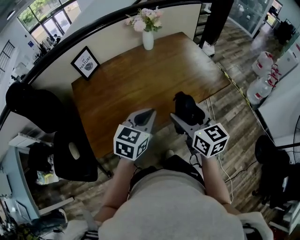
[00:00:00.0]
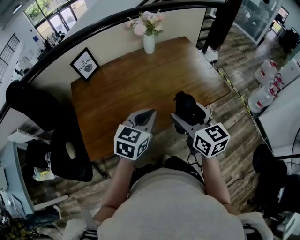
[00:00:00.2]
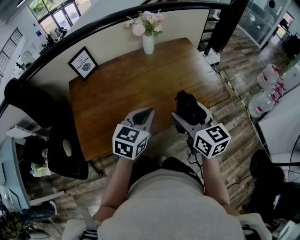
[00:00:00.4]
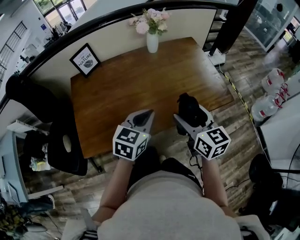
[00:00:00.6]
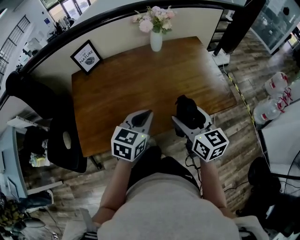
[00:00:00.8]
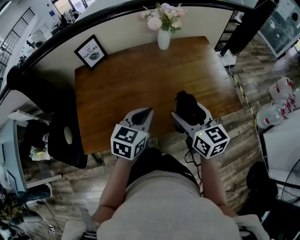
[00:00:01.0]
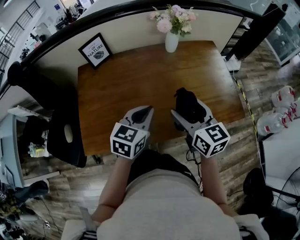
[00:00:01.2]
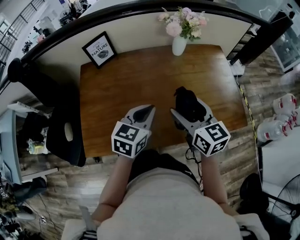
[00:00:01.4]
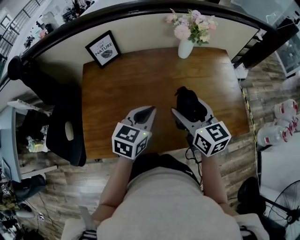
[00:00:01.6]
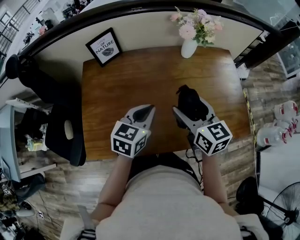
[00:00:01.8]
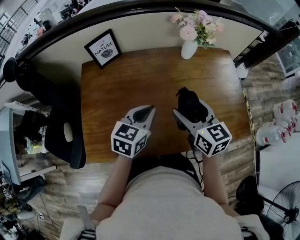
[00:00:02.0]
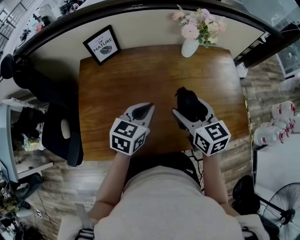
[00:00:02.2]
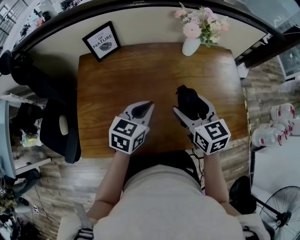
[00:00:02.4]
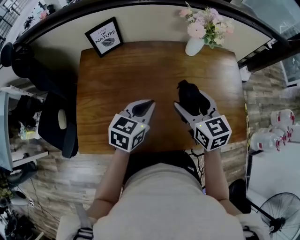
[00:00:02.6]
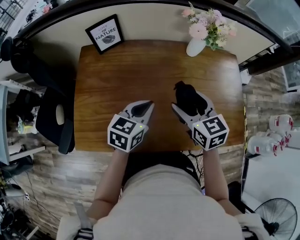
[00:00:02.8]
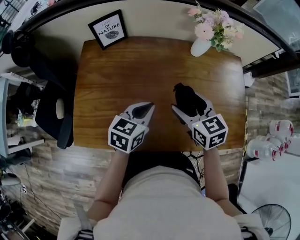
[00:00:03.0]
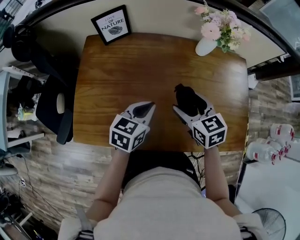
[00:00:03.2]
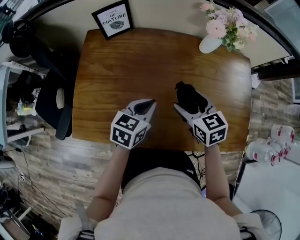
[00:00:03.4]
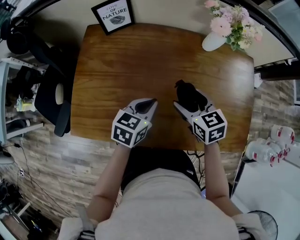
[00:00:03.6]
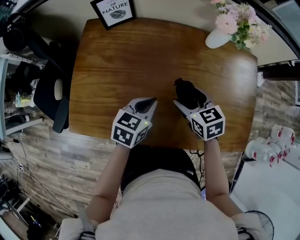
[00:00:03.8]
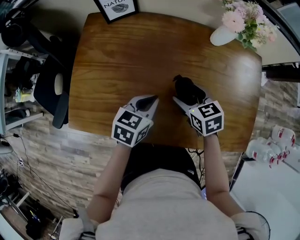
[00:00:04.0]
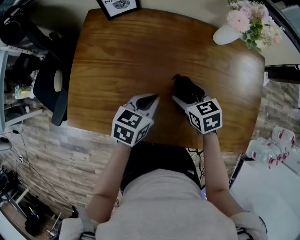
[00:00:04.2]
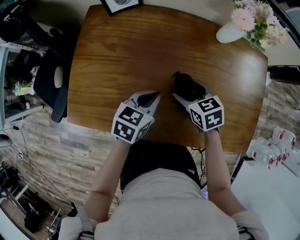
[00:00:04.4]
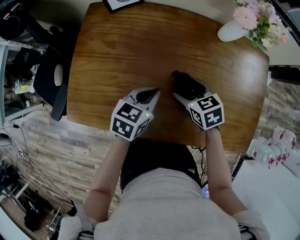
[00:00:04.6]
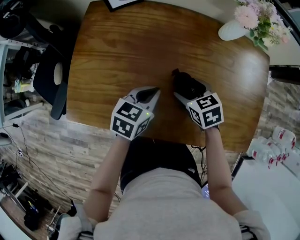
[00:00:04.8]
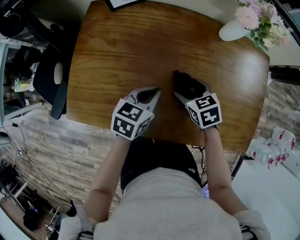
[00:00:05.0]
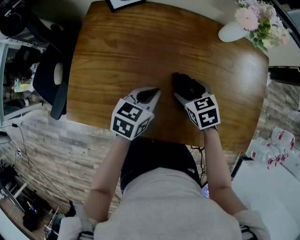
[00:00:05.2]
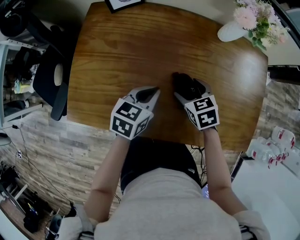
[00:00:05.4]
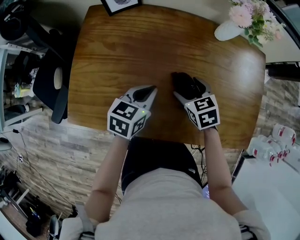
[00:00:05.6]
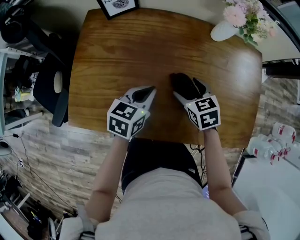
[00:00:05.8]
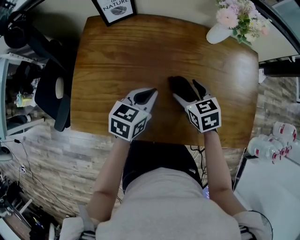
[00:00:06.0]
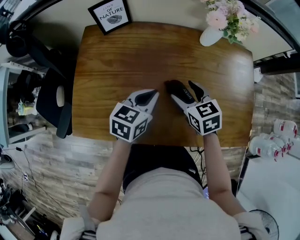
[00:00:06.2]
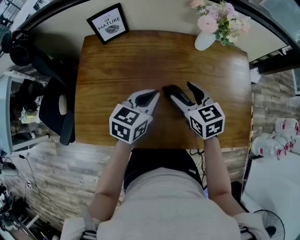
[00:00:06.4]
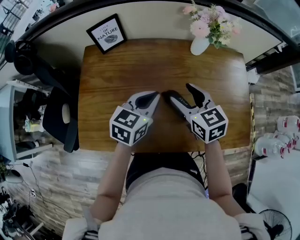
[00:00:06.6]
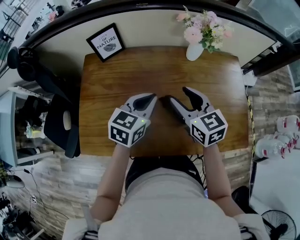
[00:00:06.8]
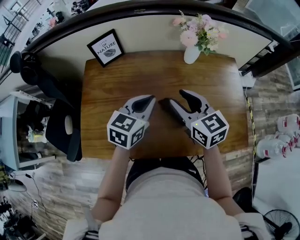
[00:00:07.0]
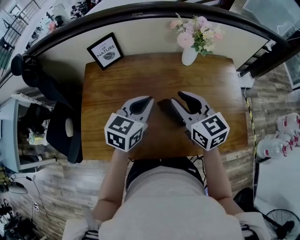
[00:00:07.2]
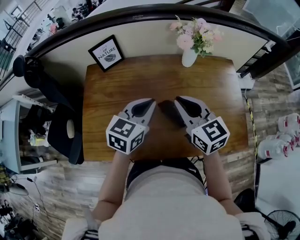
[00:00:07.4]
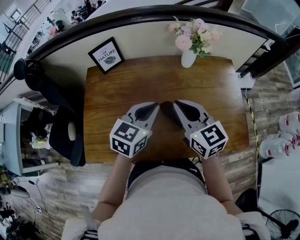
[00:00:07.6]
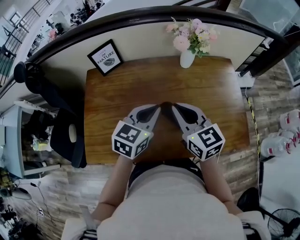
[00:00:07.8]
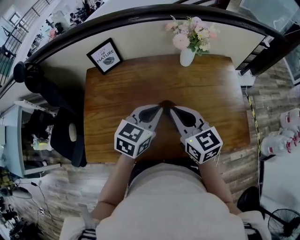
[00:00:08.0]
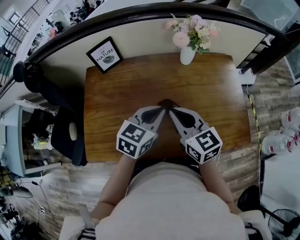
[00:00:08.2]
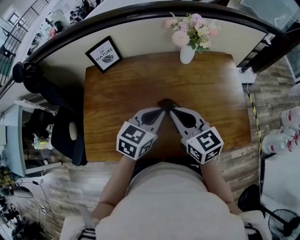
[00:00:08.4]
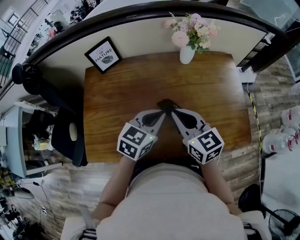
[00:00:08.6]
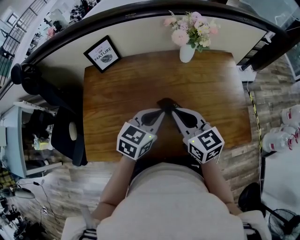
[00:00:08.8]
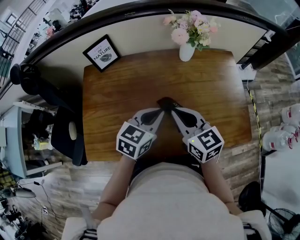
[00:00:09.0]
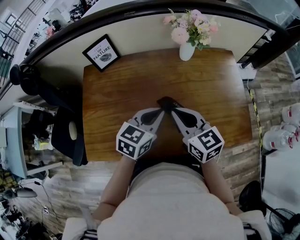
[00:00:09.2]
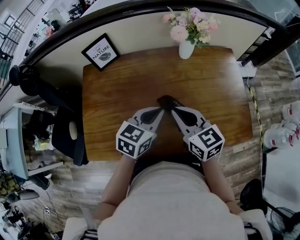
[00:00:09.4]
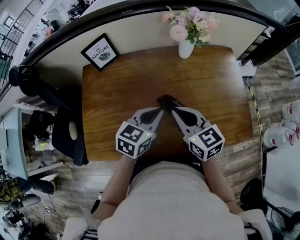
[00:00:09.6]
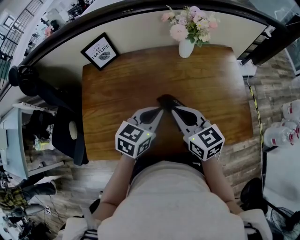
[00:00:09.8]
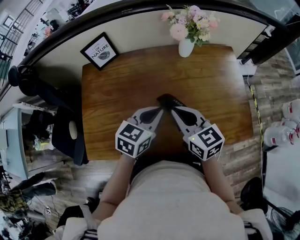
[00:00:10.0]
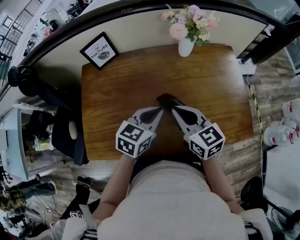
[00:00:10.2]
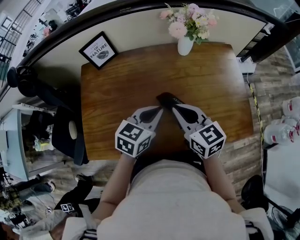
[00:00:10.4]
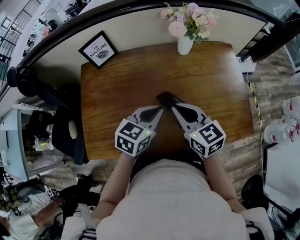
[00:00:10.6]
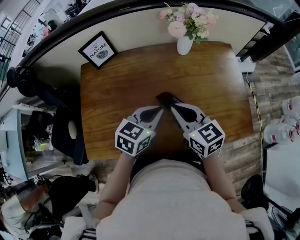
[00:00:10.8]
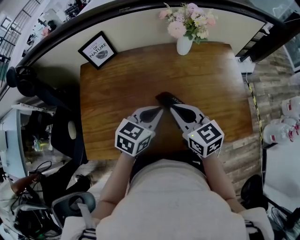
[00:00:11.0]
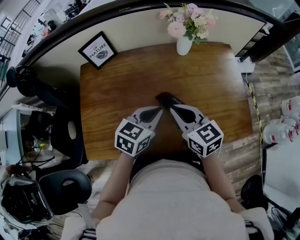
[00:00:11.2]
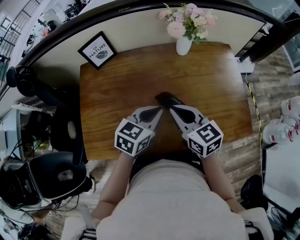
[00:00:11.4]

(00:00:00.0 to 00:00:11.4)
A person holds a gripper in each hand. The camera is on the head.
00:00:00.0 - 00:00:01.4: The grippers both shift forward by roughly 15 cm.
00:00:01.4 - 00:00:02.8: Both grippers move forward, roughly 5 cm.
00:00:02.8 - 00:00:04.2: The left gripper heads downward, covering roughly 10 cm. Meanwhile the right gripper travels downward by about 15 cm, and rotates some 20 degrees.
00:00:04.2 - 00:00:05.6: The grippers move only a little.
00:00:05.6 - 00:00:07.2: Both grippers move upward, some 20 cm. The left gripper changes its angle by approximately 20 degrees; the right gripper tips its fingers upward by about 40 degrees, and closes.
00:00:07.2 - 00:00:08.6: The left gripper travels to the right by some 5 cm. Meanwhile the right gripper ends up roughly 5 cm from where it was.
00:00:08.6 - 00:00:10.0: The grippers stay close to where they were, moving slightly.
00:00:10.0 - 00:00:11.4: Both grippers stay put.

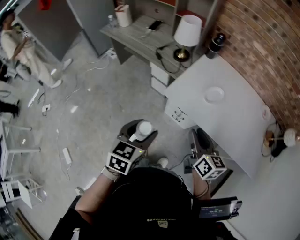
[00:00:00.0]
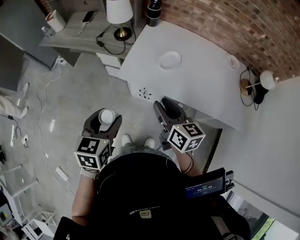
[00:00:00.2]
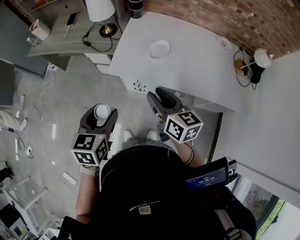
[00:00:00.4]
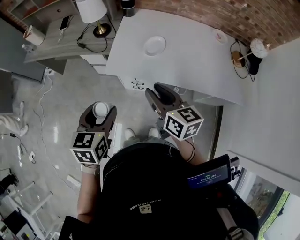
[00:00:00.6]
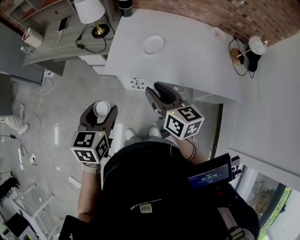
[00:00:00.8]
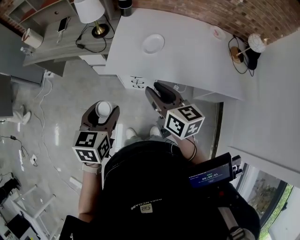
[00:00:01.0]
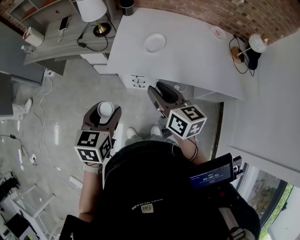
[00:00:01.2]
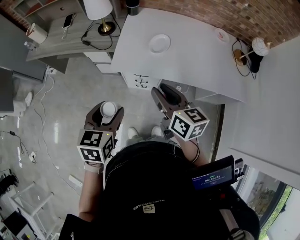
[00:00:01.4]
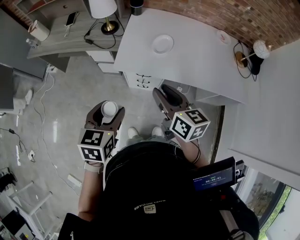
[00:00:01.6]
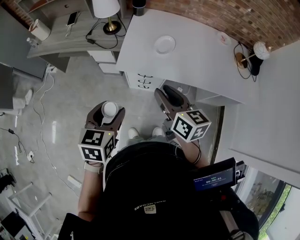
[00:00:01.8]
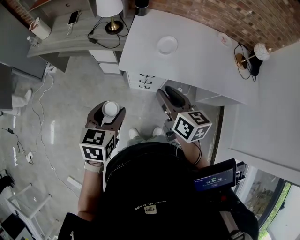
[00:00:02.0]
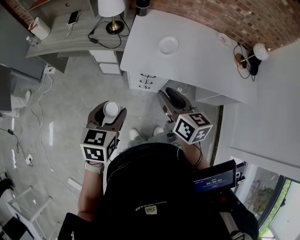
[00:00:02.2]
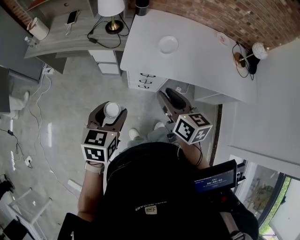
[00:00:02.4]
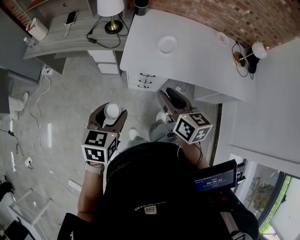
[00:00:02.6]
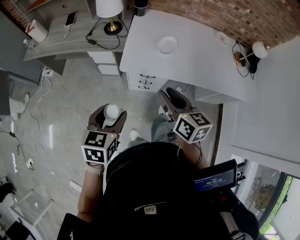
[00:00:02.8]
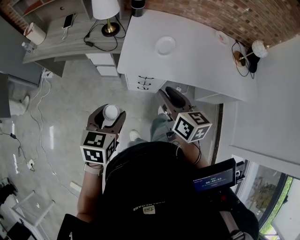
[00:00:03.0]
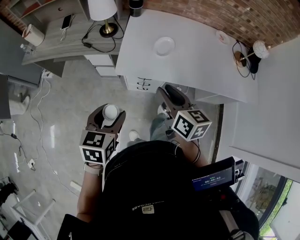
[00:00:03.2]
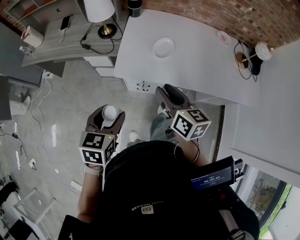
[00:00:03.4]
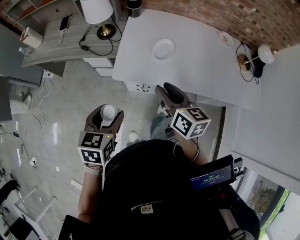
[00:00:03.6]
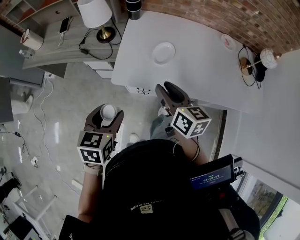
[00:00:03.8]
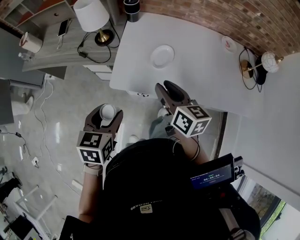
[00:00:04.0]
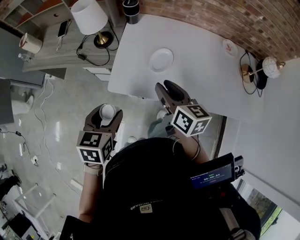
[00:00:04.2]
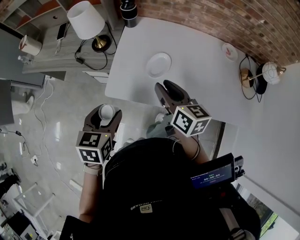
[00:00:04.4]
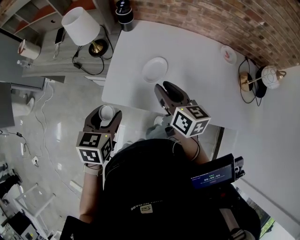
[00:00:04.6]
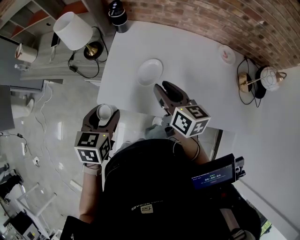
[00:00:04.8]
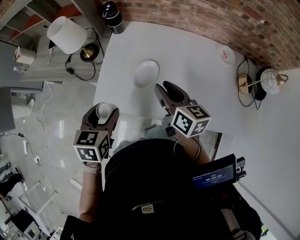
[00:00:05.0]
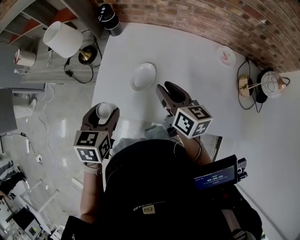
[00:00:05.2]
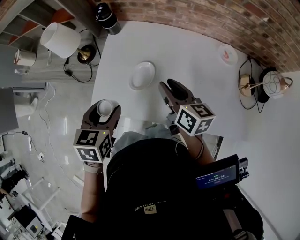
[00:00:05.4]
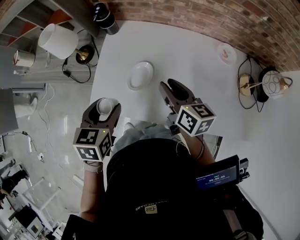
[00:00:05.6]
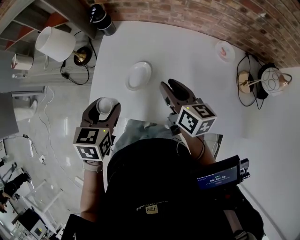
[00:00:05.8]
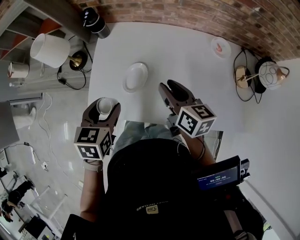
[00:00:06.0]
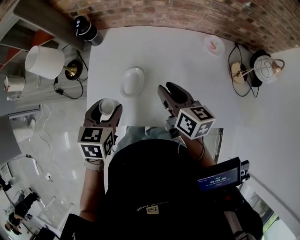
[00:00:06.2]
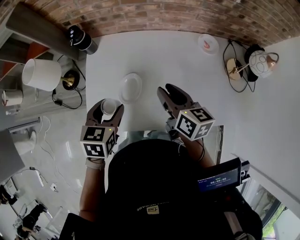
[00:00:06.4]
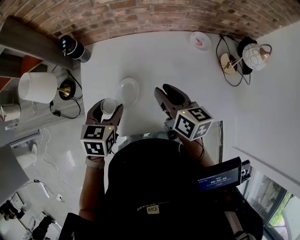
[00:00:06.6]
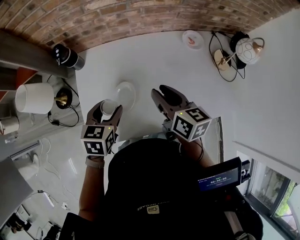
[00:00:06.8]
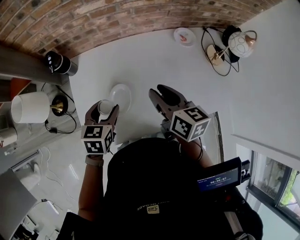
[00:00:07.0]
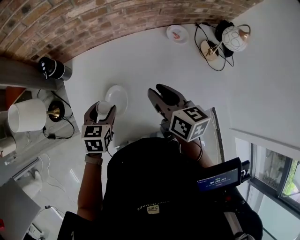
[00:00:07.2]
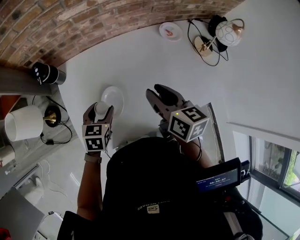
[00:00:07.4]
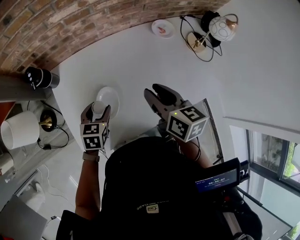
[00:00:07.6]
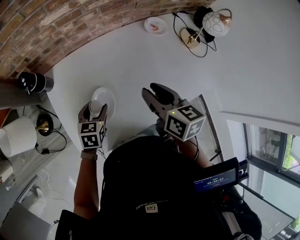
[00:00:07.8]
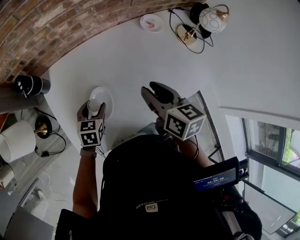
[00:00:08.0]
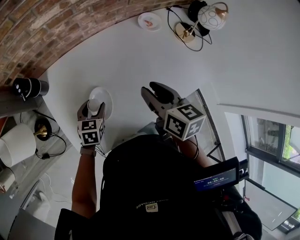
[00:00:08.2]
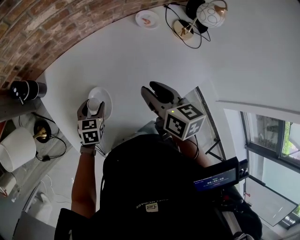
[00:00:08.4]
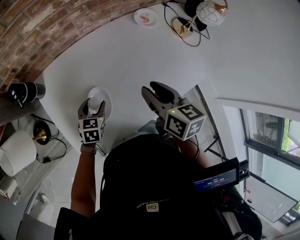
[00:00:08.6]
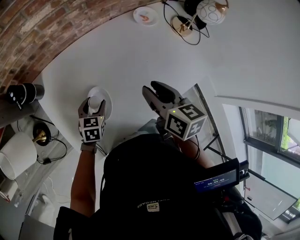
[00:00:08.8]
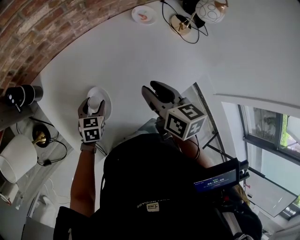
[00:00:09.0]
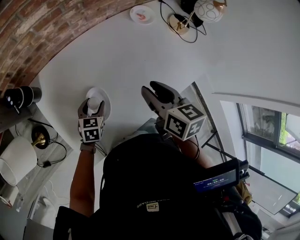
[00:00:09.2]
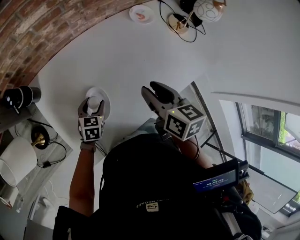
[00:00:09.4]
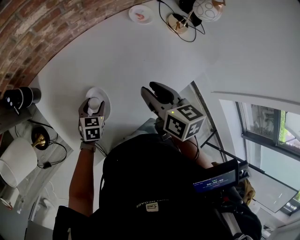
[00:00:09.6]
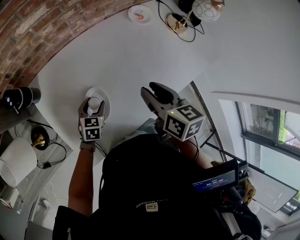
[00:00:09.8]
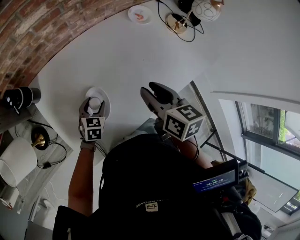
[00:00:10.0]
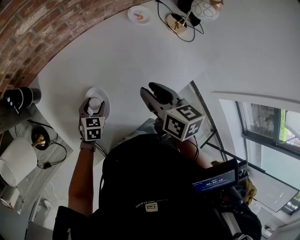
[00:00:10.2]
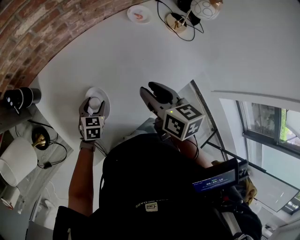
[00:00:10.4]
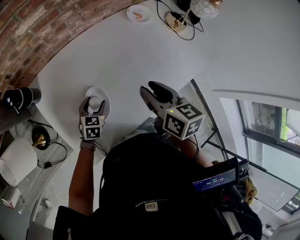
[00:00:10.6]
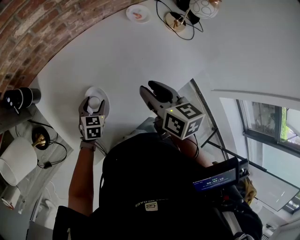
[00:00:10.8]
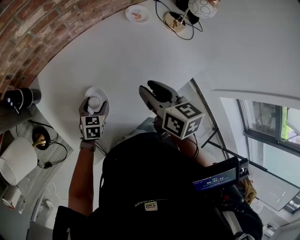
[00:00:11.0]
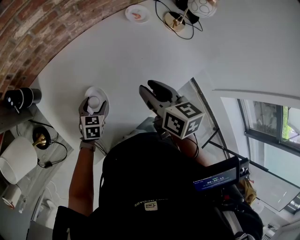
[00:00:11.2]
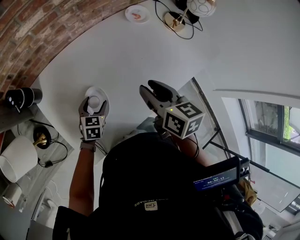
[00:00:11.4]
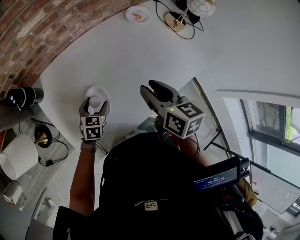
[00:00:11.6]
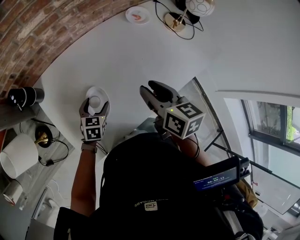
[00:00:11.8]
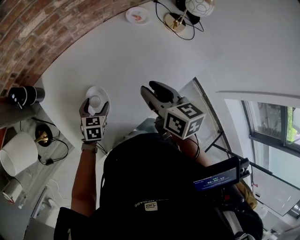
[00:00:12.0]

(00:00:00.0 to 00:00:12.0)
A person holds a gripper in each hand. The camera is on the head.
00:00:00.0 - 00:00:01.6: The right gripper ends up some 5 cm from where it was.
00:00:01.6 - 00:00:03.0: The left gripper changes place by roughly 5 cm.
00:00:03.0 - 00:00:04.4: Both grippers move forward and to the right, approximately 20 cm.
00:00:04.4 - 00:00:06.0: The grippers both shift to the right and forward by about 20 cm.
00:00:06.0 - 00:00:07.6: The left gripper shifts by approximately 15 cm, and rotates roughly 30 degrees; the right gripper turns by about 30 degrees.
00:00:07.6 - 00:00:09.0: The left gripper shifts approximately 10 cm downward.
00:00:09.0 - 00:00:12.0: There are only small adjustments of the grippers.
